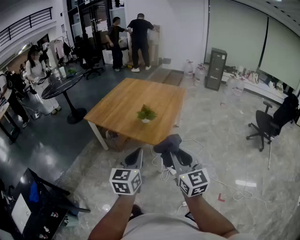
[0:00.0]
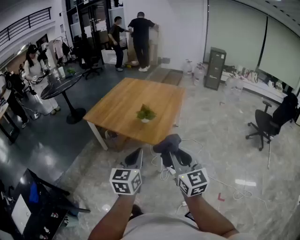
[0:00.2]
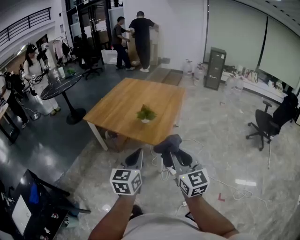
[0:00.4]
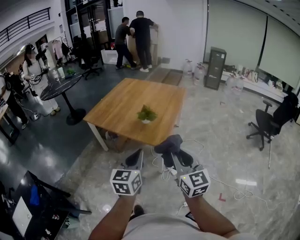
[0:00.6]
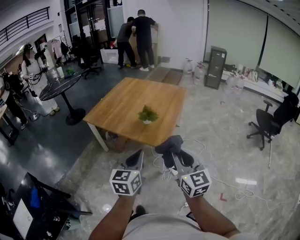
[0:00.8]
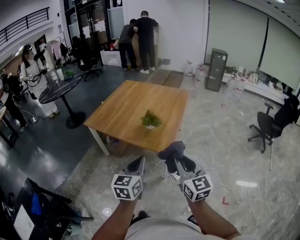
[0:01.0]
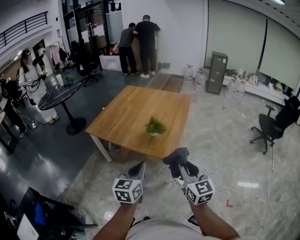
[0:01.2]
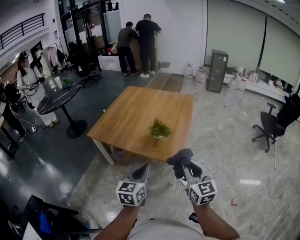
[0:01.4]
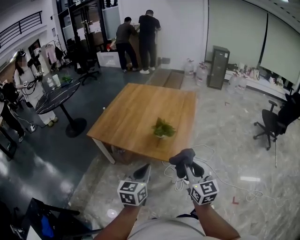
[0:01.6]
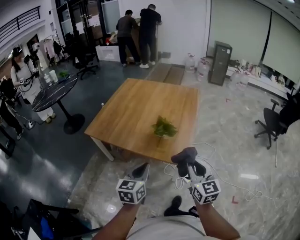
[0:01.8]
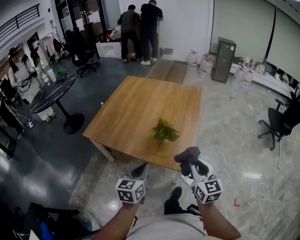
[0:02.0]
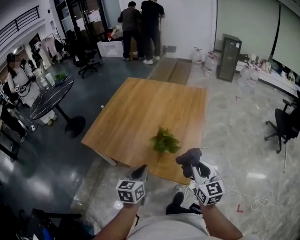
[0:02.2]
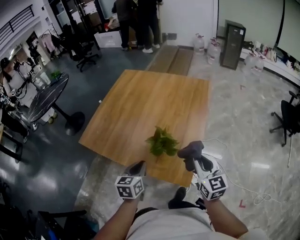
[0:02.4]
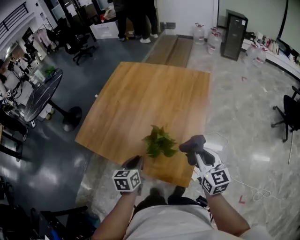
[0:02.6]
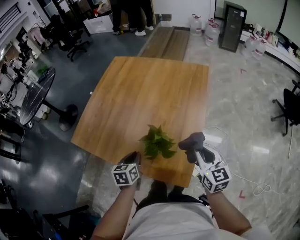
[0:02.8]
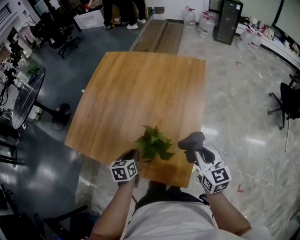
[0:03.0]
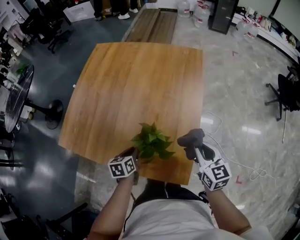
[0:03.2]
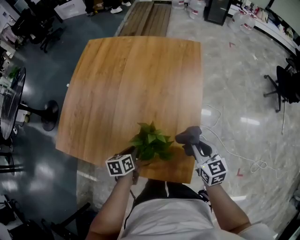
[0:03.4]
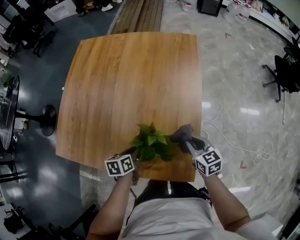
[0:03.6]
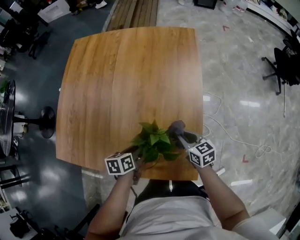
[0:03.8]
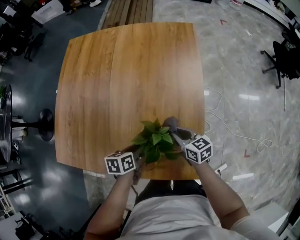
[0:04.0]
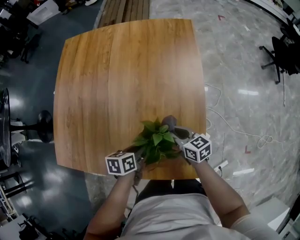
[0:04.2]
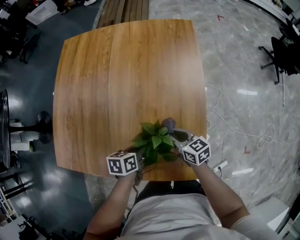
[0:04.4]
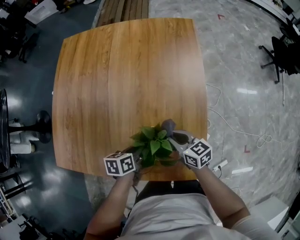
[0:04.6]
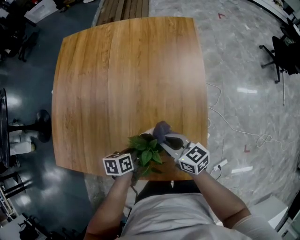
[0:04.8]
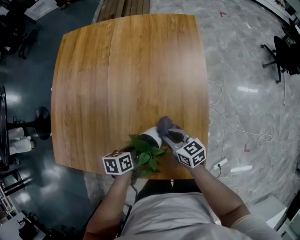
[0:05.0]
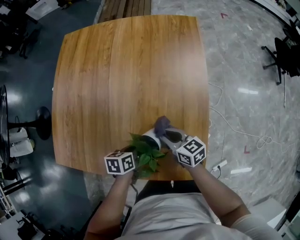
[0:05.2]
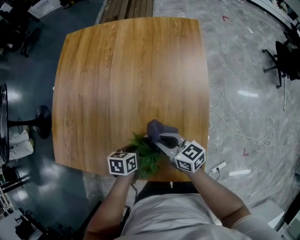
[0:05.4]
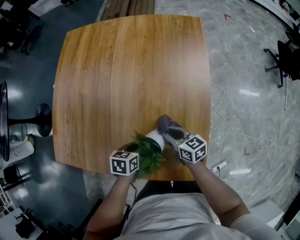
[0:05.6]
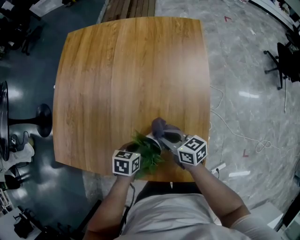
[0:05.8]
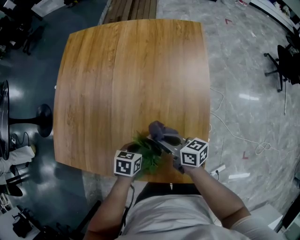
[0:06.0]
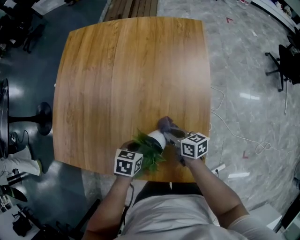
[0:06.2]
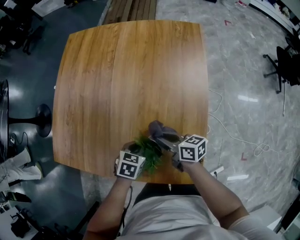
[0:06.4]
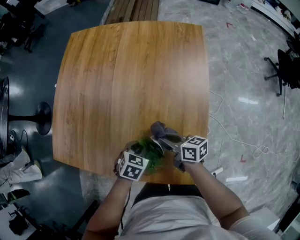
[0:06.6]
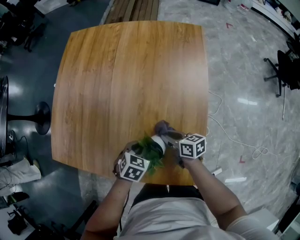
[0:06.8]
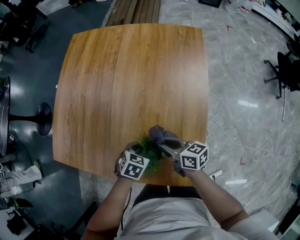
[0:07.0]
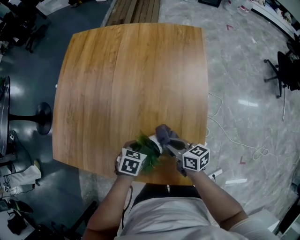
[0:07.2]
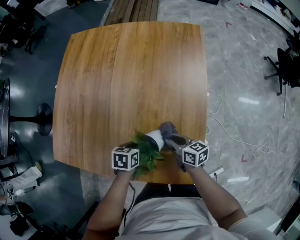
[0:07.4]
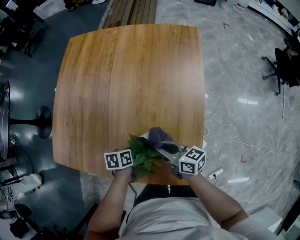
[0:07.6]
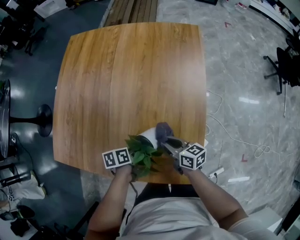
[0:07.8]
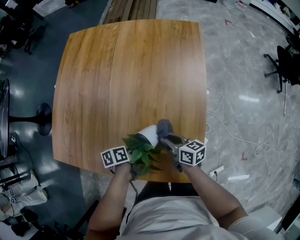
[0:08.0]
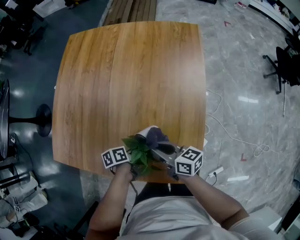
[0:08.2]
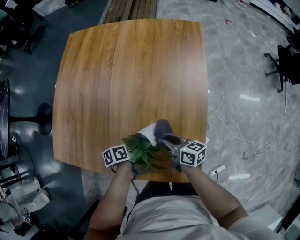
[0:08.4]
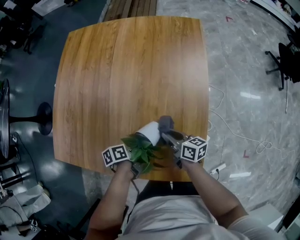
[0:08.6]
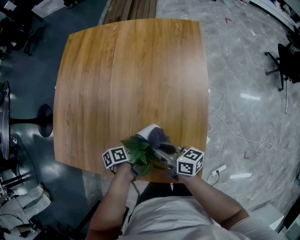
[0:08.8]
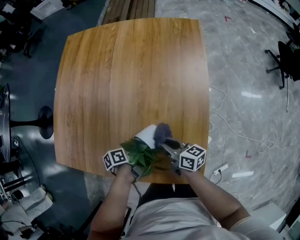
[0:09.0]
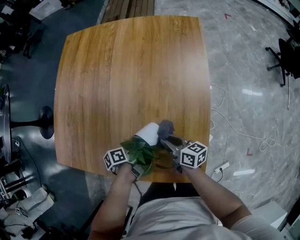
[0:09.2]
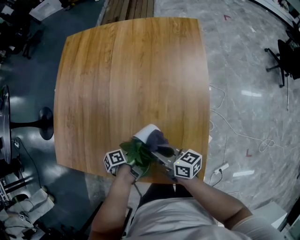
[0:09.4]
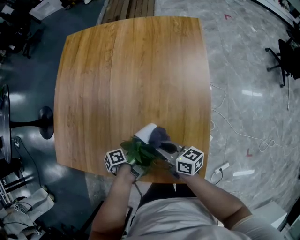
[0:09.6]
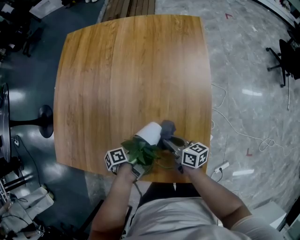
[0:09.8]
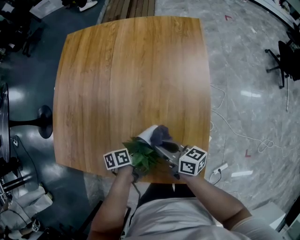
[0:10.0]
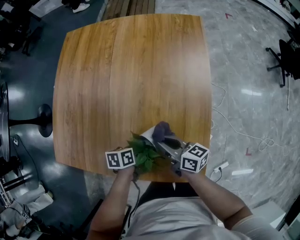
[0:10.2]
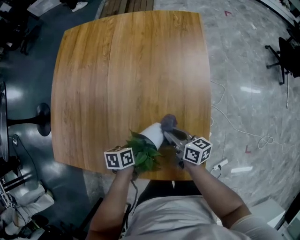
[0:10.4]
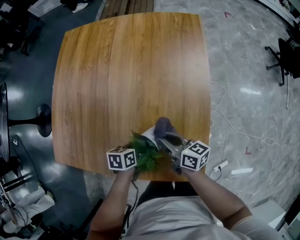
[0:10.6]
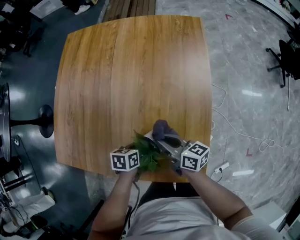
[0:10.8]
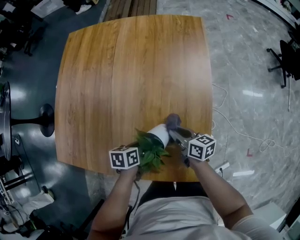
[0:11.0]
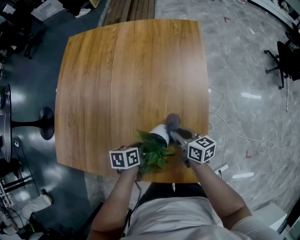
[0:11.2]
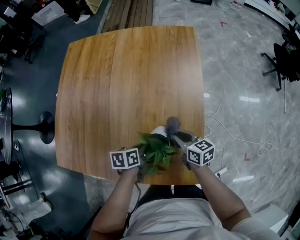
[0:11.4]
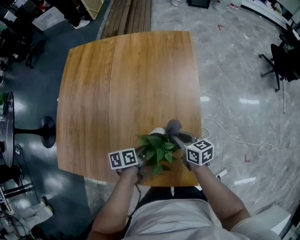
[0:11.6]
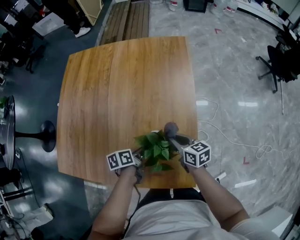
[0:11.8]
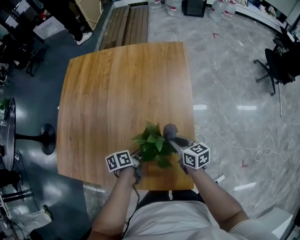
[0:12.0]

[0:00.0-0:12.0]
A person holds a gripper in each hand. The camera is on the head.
0:00.0 to 0:01.6: Both grippers move forward and to the left, roughly 25 cm.
0:01.6 to 0:03.0: The two grippers travel together, forward, approximately 50 cm. The left gripper shifts approximately 25 cm downward, and turns by some 30 degrees.
0:03.0 to 0:04.4: The left gripper heads downward and forward, covering about 15 cm, and turns by roughly 30 degrees; the right gripper goes about 25 cm downward, to the left and forward, and rotates roughly 30 degrees.
0:04.4 to 0:06.0: The right gripper goes up and down, some 5 cm each way, reversing 4 times, and changes its angle by some 20 degrees. The left gripper changes its angle by about 20 degrees.
0:06.0 to 0:07.6: The left gripper changes its angle by roughly 30 degrees, while the right gripper moves up and down over about 10 cm, changing direction 5 times.
0:07.6 to 0:09.0: The left gripper rotates some 30 degrees; the right gripper swings up and down, approximately 10 cm each way, with 4 reversals.
0:09.0 to 0:10.4: The left gripper turns by approximately 40 degrees. Meanwhile the right gripper goes up and down, about 5 cm each way, reversing 3 times.
0:10.4 to 0:12.0: The left gripper is displaced upward and to the right by roughly 10 cm; the right gripper goes approximately 10 cm to the right and upward.

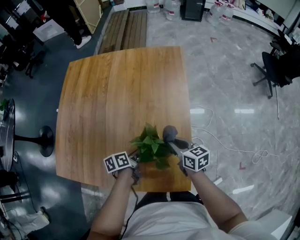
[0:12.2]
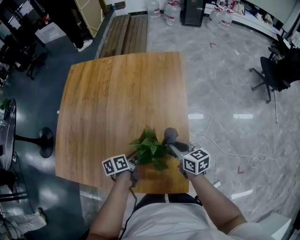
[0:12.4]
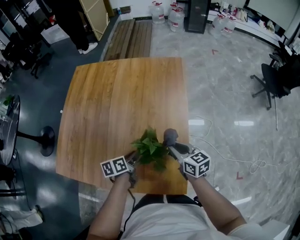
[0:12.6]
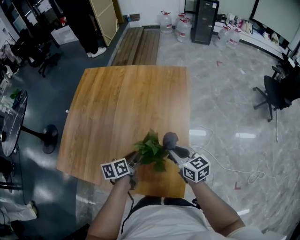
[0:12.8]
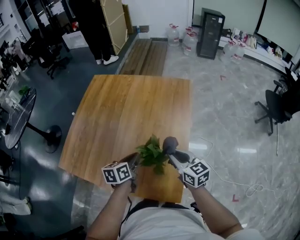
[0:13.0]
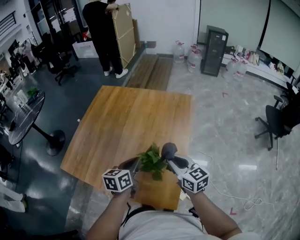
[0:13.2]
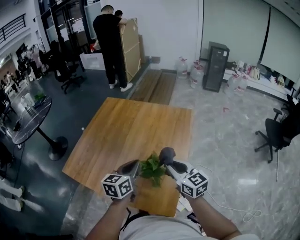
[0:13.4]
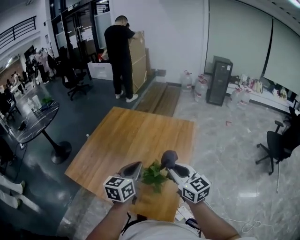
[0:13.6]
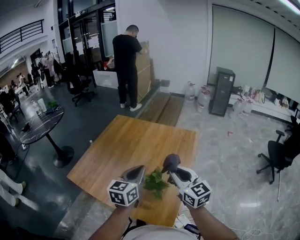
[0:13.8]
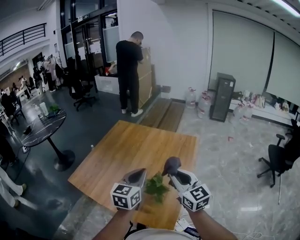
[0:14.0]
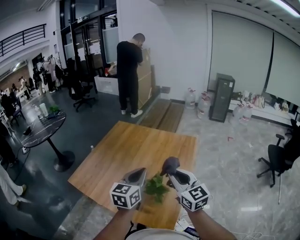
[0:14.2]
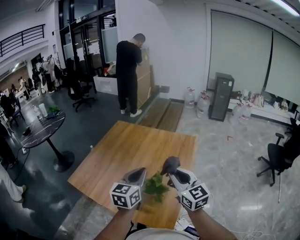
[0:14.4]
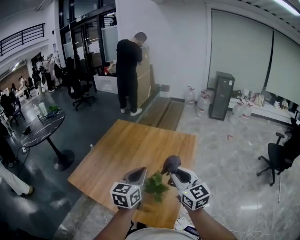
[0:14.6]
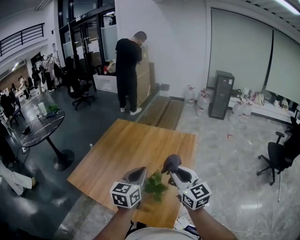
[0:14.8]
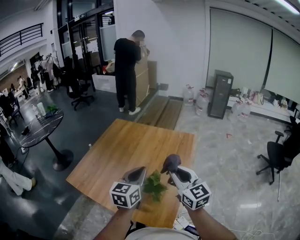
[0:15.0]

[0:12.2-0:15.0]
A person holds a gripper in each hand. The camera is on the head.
0:12.2 to 0:13.6: The grippers both shift upward by about 35 cm. The right gripper turns by some 40 degrees, while the left gripper swivels roughly 60 degrees, and closes.
0:13.6 to 0:15.0: The right gripper goes approximately 5 cm upward.

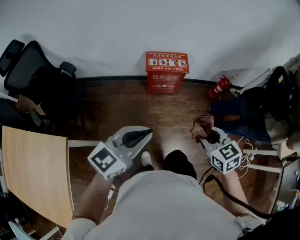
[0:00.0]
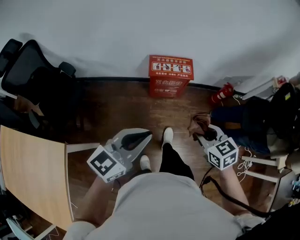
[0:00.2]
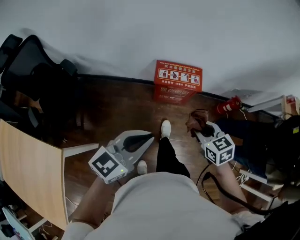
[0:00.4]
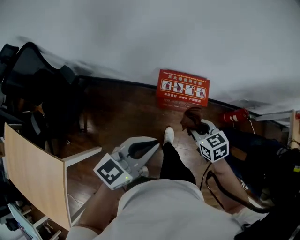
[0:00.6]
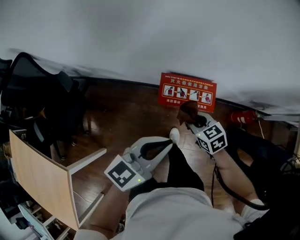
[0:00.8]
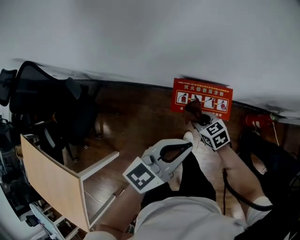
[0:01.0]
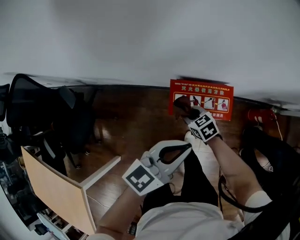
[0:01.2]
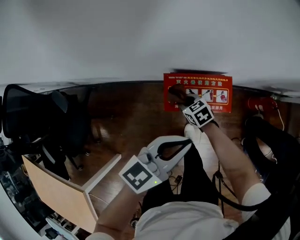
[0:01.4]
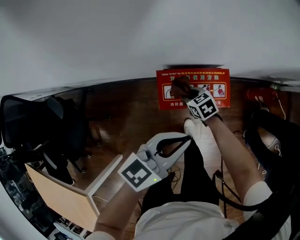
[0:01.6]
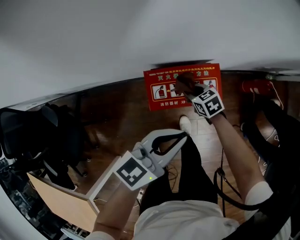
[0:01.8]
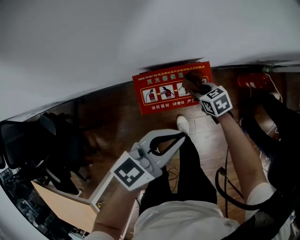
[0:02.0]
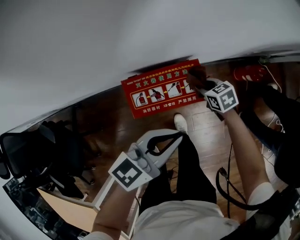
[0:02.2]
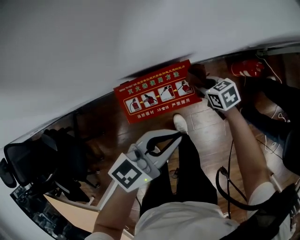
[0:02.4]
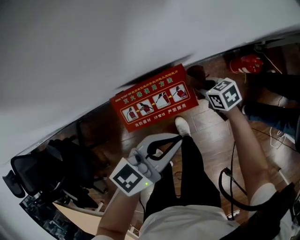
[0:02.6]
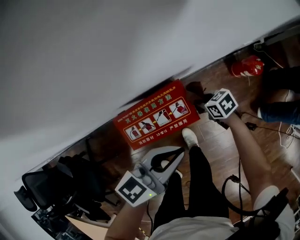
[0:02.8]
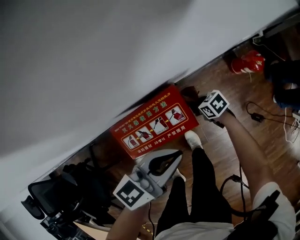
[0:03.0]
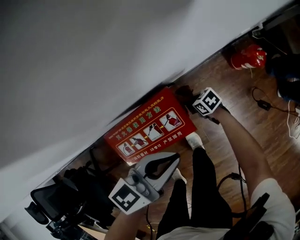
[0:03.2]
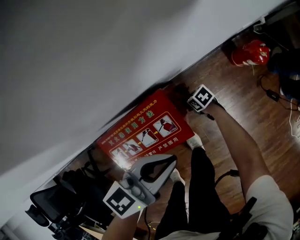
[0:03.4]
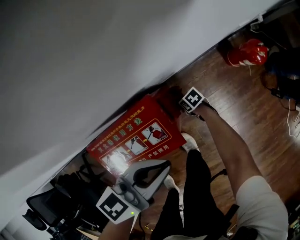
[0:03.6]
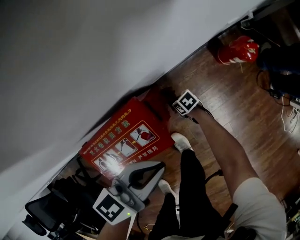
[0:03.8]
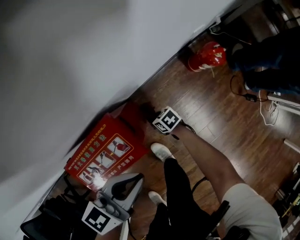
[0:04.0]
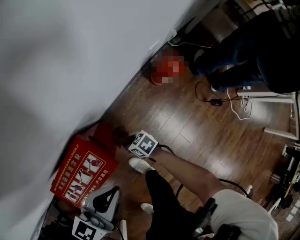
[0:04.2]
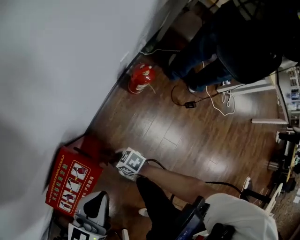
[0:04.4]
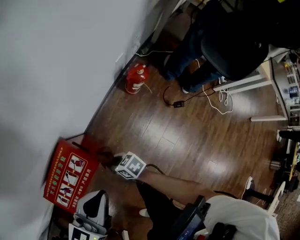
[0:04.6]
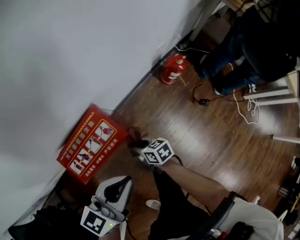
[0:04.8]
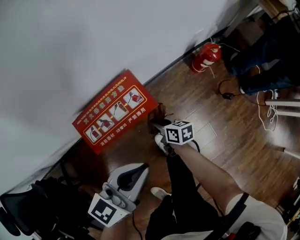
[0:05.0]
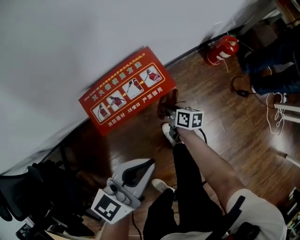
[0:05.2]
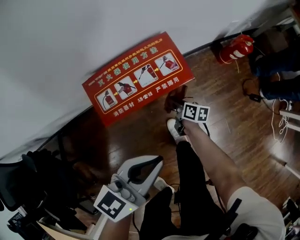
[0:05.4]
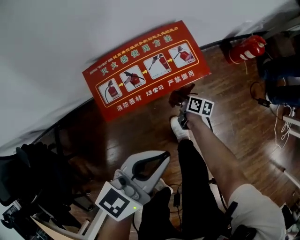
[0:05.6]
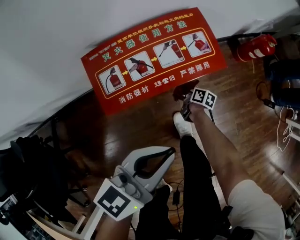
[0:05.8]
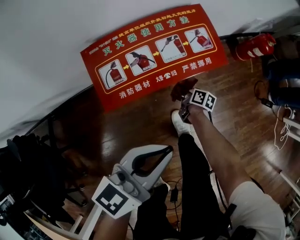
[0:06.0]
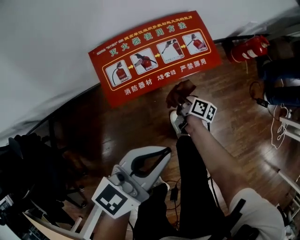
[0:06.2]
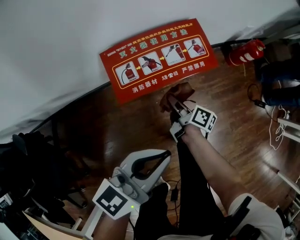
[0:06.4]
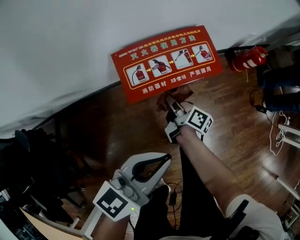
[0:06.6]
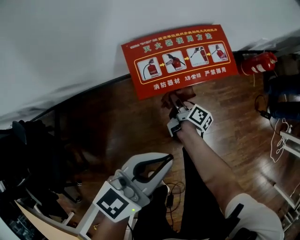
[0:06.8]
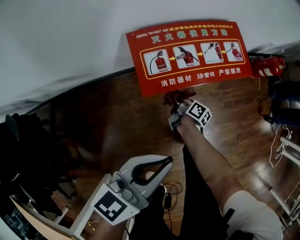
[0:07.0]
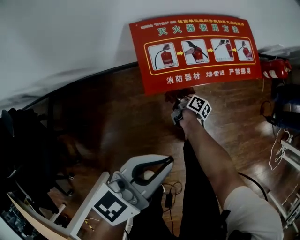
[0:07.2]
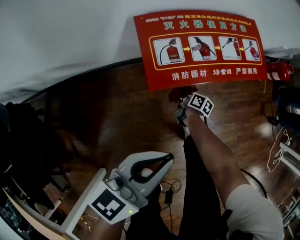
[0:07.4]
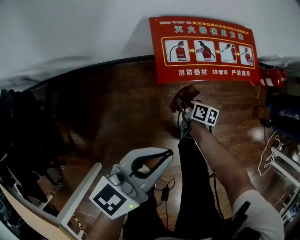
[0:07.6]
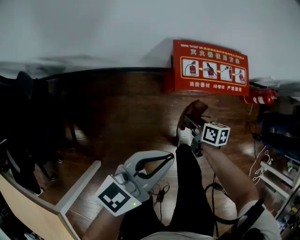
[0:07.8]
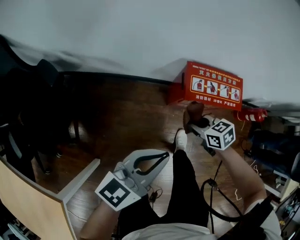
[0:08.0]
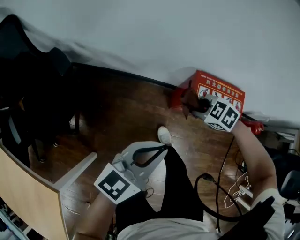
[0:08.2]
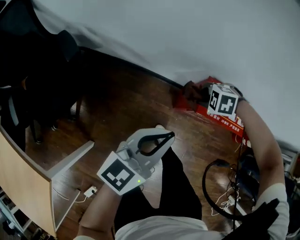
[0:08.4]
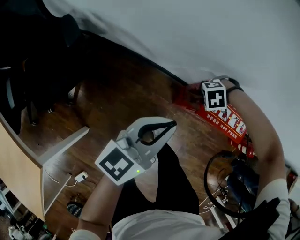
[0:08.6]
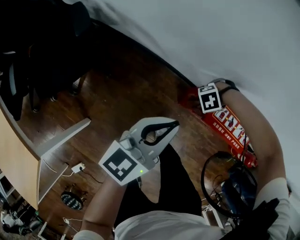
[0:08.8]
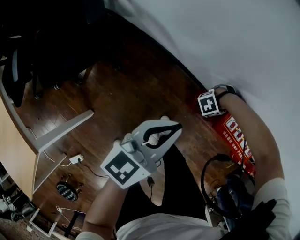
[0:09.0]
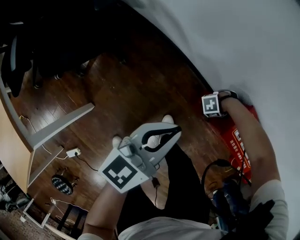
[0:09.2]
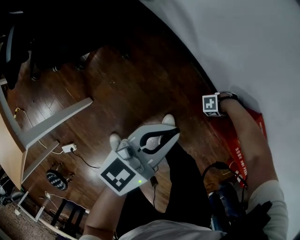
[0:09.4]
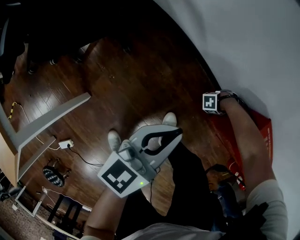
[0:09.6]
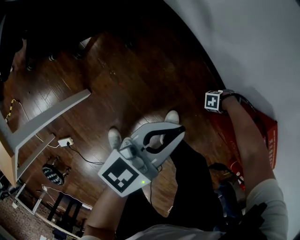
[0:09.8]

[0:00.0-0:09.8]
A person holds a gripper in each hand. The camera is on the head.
0:00.0 to 0:01.4: Both grippers are carried forward, some 50 cm. The right gripper heads downward, covering some 35 cm, and turns by some 20 degrees.
0:01.4 to 0:02.8: The right gripper changes place by roughly 30 cm, and rotates some 30 degrees. Meanwhile the left gripper shifts by about 20 cm, and changes its angle by approximately 20 degrees.
0:02.8 to 0:04.2: The right gripper shifts approximately 15 cm downward. Meanwhile the left gripper goes approximately 10 cm downward.
0:04.2 to 0:05.6: The left gripper moves roughly 20 cm, while the right gripper heads downward, covering some 10 cm, and rotates some 40 degrees.
0:05.6 to 0:07.0: The left gripper heads to the left and backward, covering about 10 cm, while the right gripper moves up and down over roughly 20 cm, changing direction 2 times, and changes its angle by about 20 degrees.
0:07.0 to 0:08.4: The left gripper moves about 20 cm, and turns by about 30 degrees. The right gripper moves up and down over about 40 cm, changing direction 2 times, and tilts its fingers some 50 degrees downward.
0:08.4 to 0:09.8: The left gripper heads downward, covering some 20 cm, and turns by some 30 degrees; the right gripper goes approximately 40 cm downward, and points its fingers approximately 30 degrees further upward.
